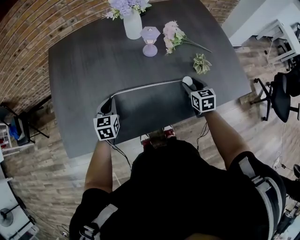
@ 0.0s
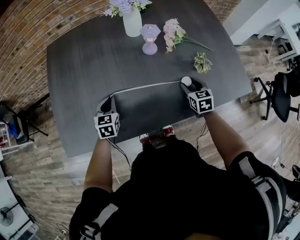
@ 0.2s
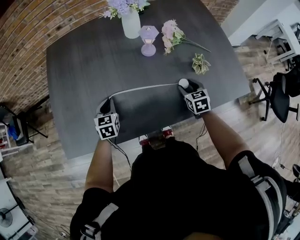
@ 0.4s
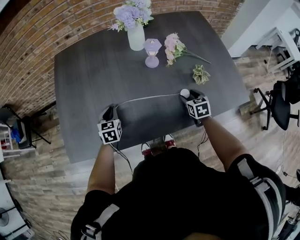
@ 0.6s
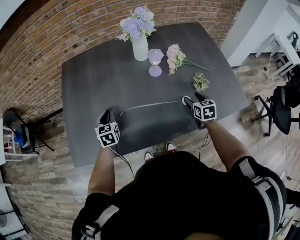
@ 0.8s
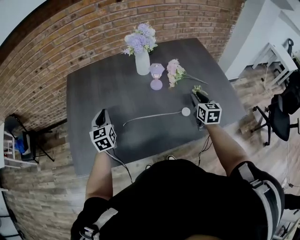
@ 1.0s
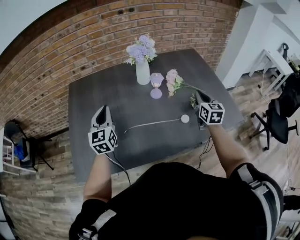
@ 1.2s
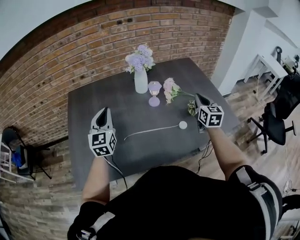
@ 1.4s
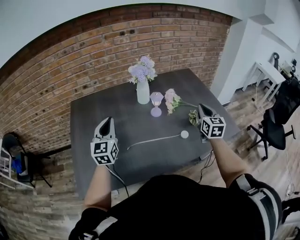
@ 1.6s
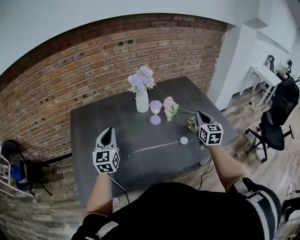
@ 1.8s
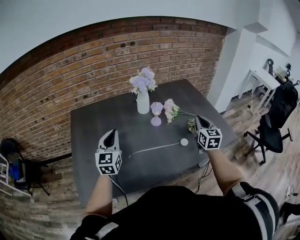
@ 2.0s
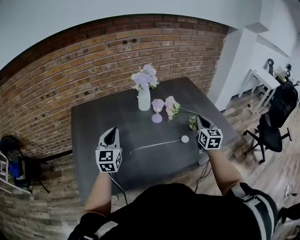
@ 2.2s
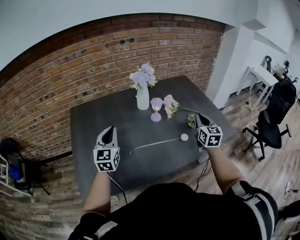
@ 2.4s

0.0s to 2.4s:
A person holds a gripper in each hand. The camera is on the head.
0.0s to 1.2s: Both grippers travel together upward, some 20 cm. The right gripper swivels about 30 degrees, and closes its fingers. Meanwhile the left gripper tips its fingers upward by roughly 30 degrees.
1.2s to 2.4s: The right gripper goes approximately 5 cm backward.

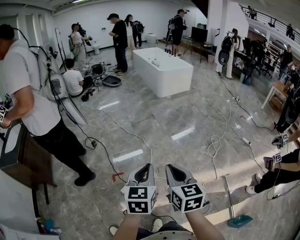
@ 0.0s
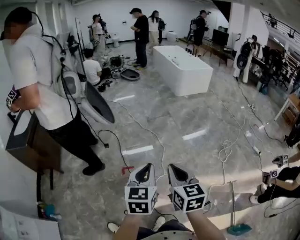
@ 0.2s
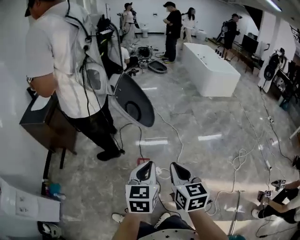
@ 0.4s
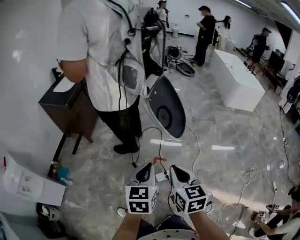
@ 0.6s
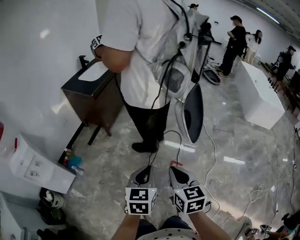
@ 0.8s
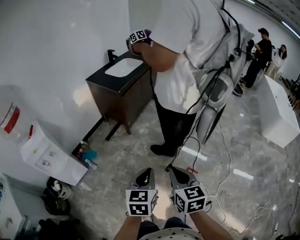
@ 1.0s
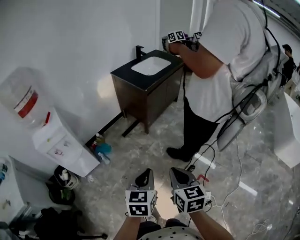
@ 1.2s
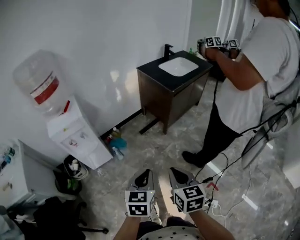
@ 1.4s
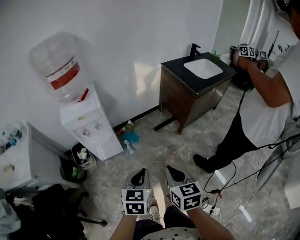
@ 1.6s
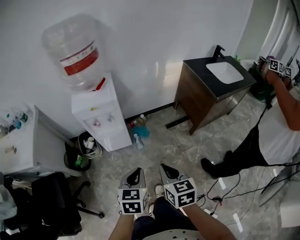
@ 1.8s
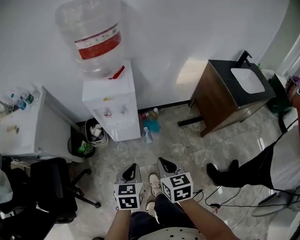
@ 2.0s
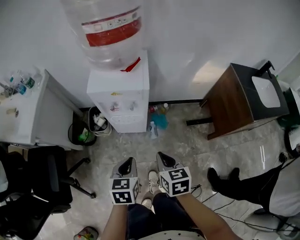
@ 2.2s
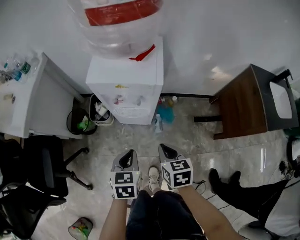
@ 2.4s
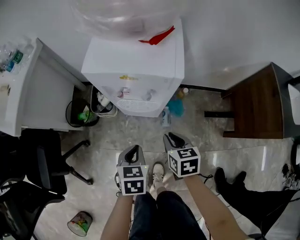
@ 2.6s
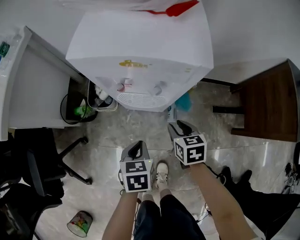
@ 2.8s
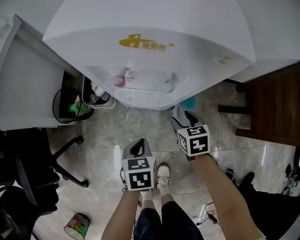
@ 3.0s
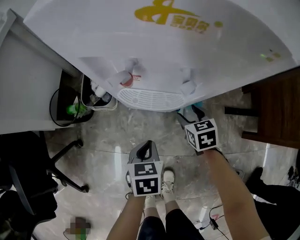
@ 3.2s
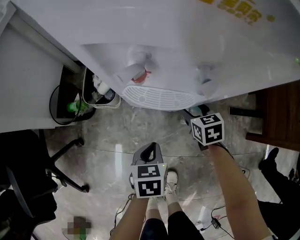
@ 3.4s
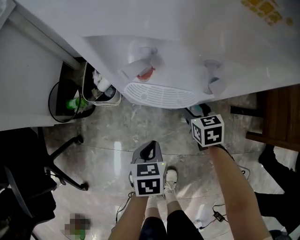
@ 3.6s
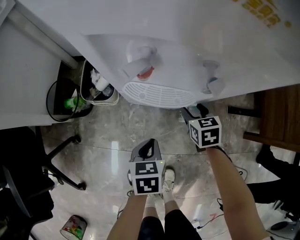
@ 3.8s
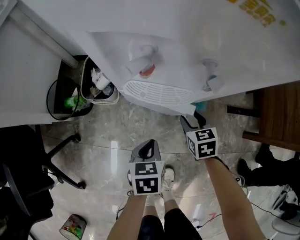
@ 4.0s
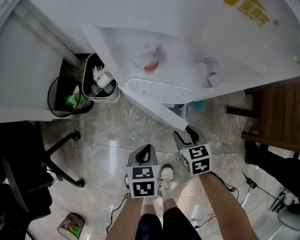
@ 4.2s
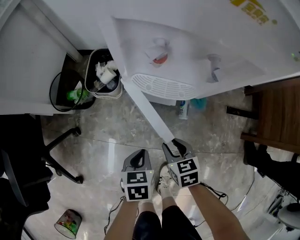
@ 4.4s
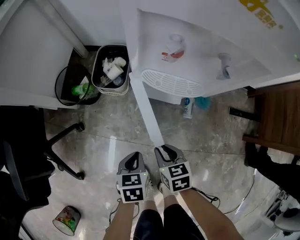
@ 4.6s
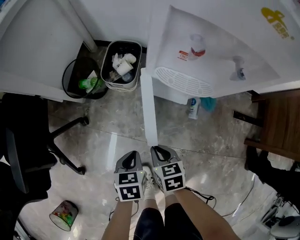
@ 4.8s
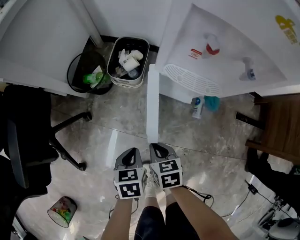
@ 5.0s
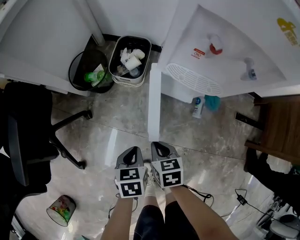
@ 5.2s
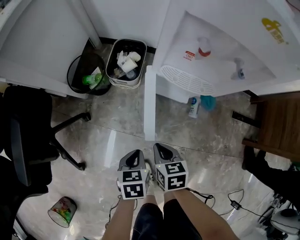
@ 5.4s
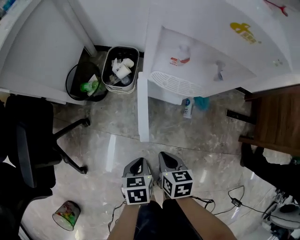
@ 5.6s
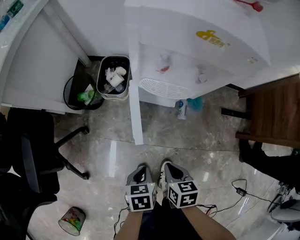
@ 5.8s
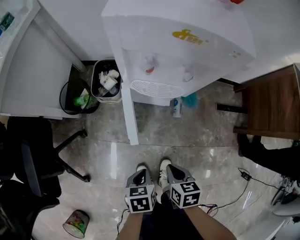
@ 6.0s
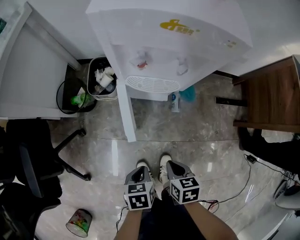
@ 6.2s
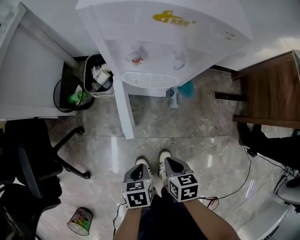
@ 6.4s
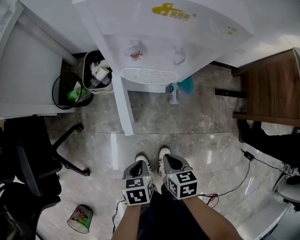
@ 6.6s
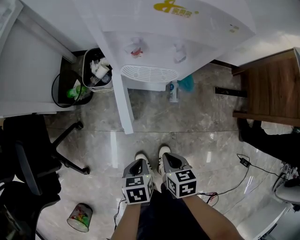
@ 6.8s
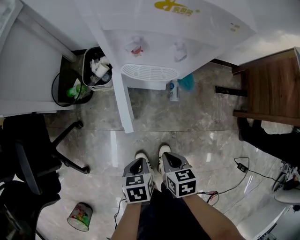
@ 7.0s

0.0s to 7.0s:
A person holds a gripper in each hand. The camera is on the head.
0.0s to 1.4s: The pair of grippers is taken roughly 80 cm. The left gripper rotates roughly 70 degrees; the right gripper turns by about 70 degrees.
1.4s to 2.8s: The two grippers travel together, approximately 50 cm. The right gripper rotates about 50 degrees, and opens its fingers, while the left gripper swivels about 60 degrees.
2.8s to 4.2s: The two grippers go roughly 15 cm downward. The right gripper opens and closes again.
4.2s to 5.6s: The right gripper moves to the left, backward and upward, roughly 20 cm, and closes up; the left gripper travels backward and to the left by roughly 15 cm.
5.6s to 7.0s: The right gripper moves to the right and backward, roughly 10 cm. The left gripper shifts by some 5 cm.

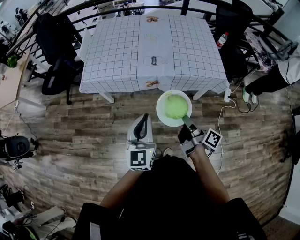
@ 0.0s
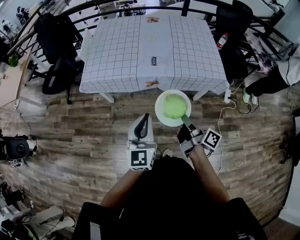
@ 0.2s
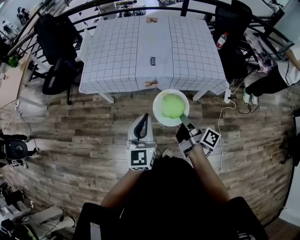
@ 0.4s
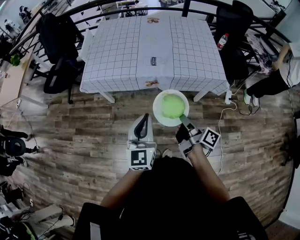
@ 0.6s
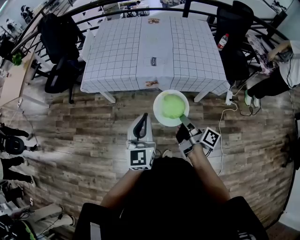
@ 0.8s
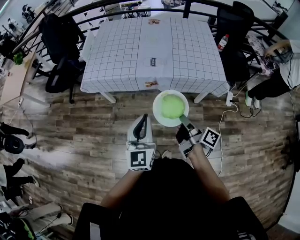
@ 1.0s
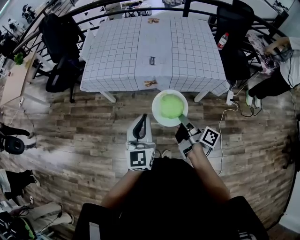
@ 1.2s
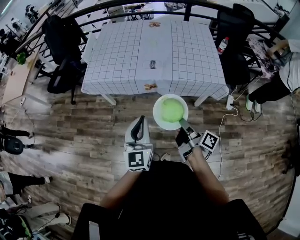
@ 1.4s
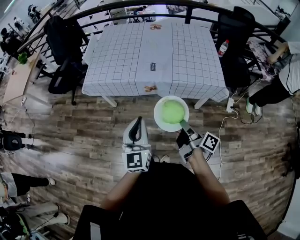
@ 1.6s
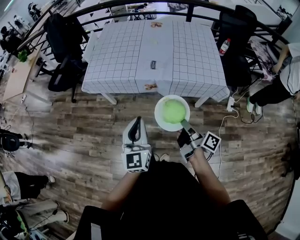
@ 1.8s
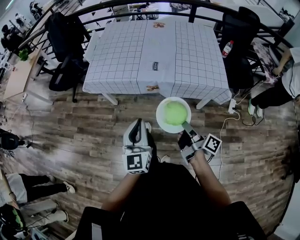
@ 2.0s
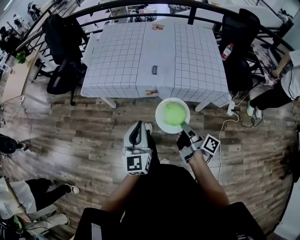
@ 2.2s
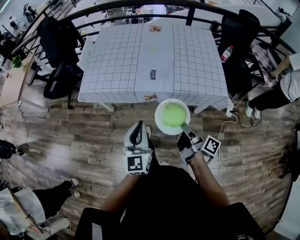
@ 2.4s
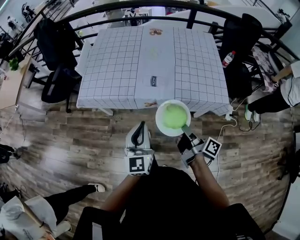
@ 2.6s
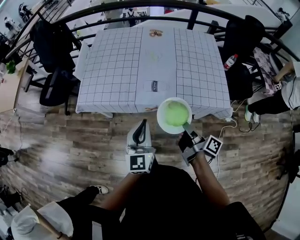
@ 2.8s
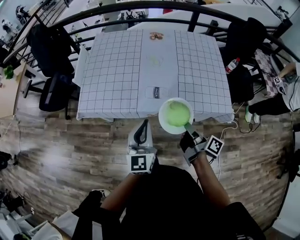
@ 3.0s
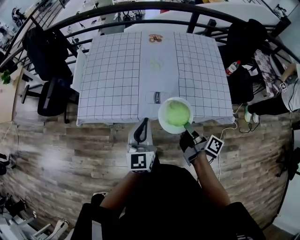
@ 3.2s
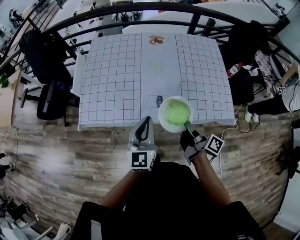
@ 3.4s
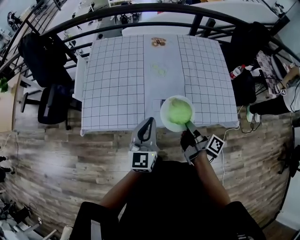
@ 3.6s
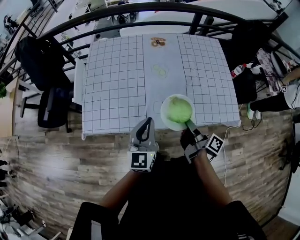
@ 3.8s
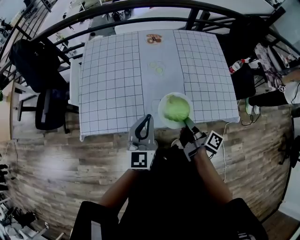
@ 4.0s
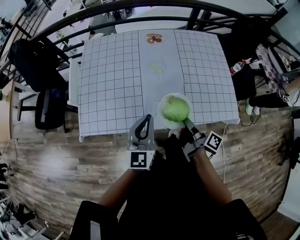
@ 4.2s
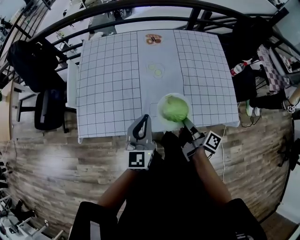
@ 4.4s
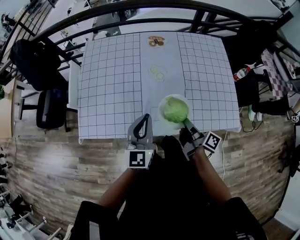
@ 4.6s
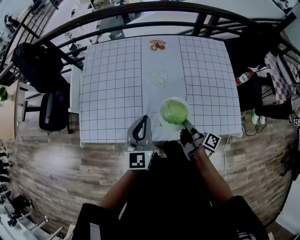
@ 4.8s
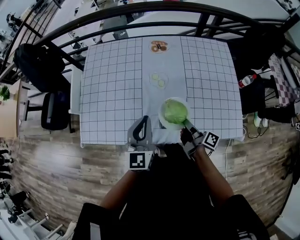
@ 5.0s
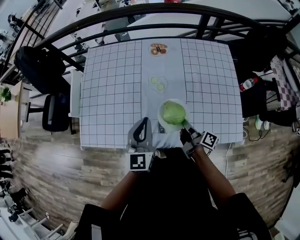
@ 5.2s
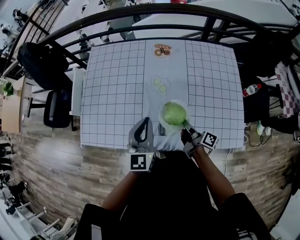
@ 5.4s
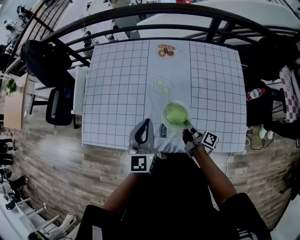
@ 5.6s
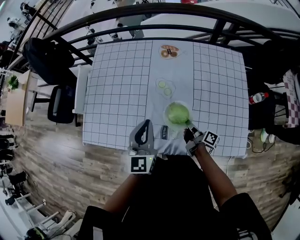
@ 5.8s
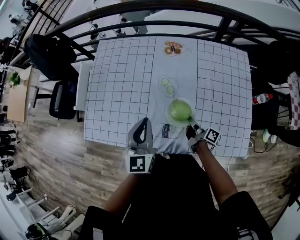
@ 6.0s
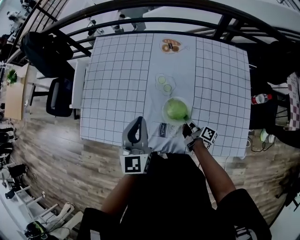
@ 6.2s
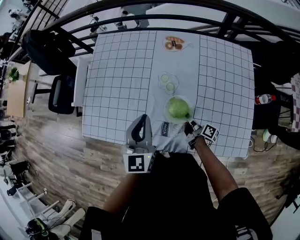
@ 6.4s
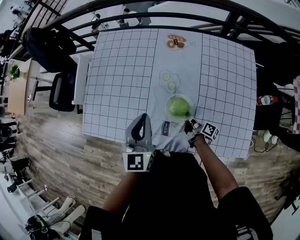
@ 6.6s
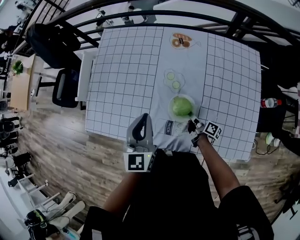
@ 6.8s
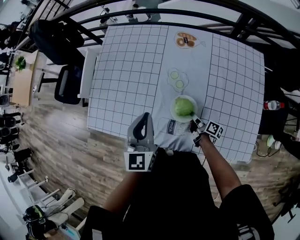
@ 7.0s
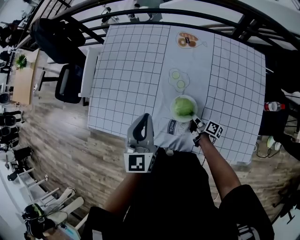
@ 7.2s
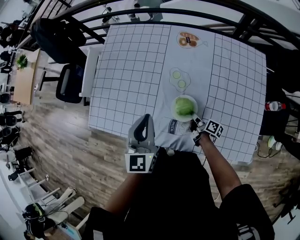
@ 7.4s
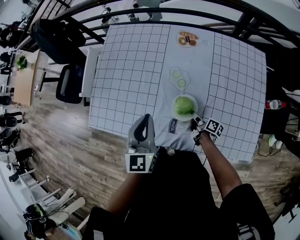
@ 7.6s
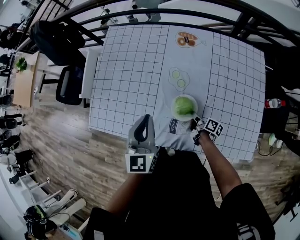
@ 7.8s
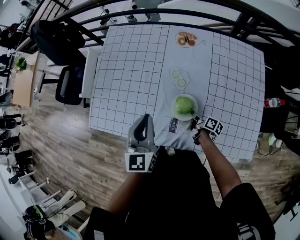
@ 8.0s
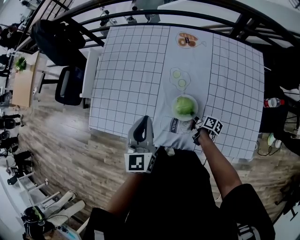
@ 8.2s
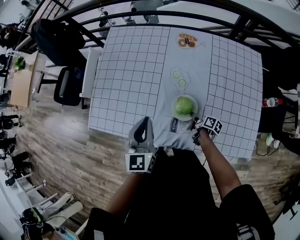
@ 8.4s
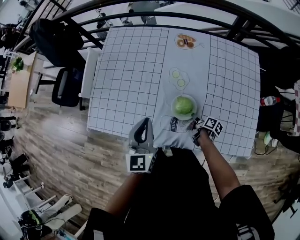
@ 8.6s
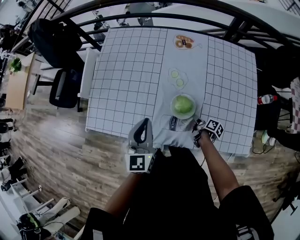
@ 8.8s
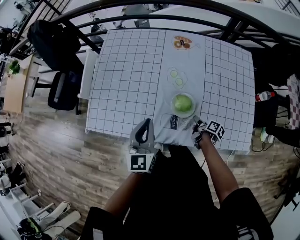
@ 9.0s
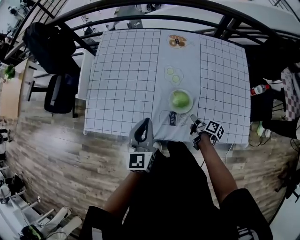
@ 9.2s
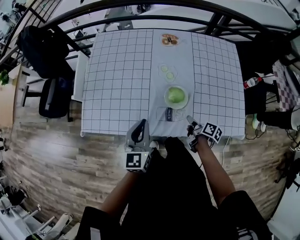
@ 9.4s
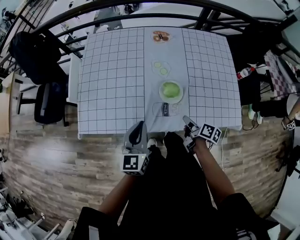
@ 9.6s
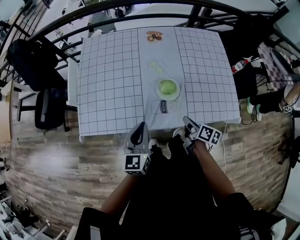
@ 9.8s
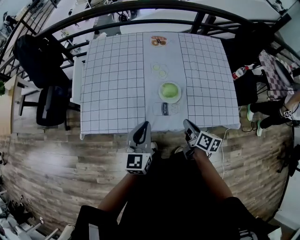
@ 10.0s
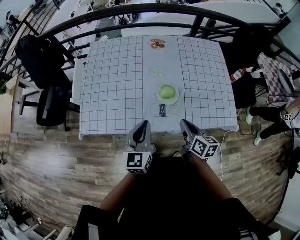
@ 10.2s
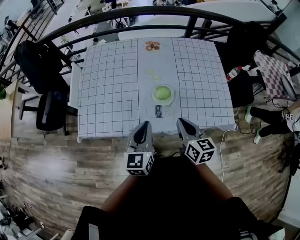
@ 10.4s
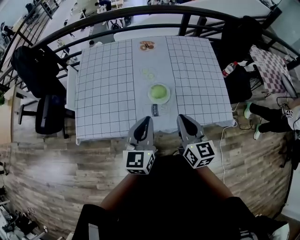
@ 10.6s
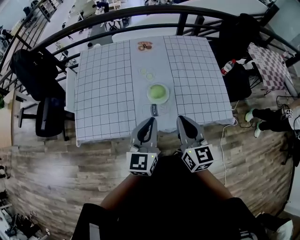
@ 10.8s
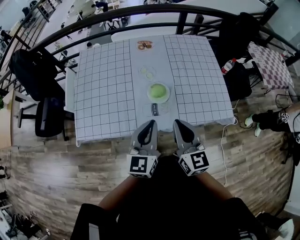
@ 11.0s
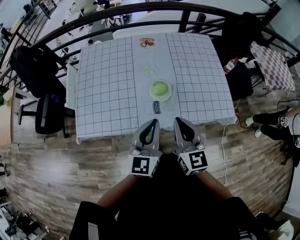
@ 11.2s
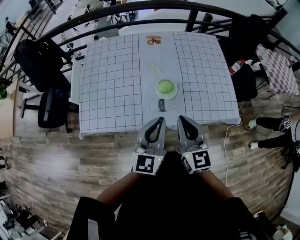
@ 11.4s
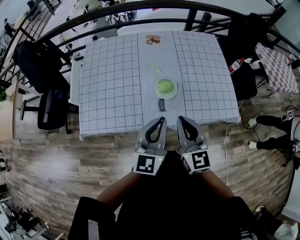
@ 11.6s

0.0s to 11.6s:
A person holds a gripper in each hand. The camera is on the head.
1.4s to 2.8s: The left gripper shifts by some 20 cm.
2.8s to 4.4s: The left gripper changes place by approximately 25 cm.
4.4s to 5.8s: The left gripper shifts by about 15 cm.
7.2s to 8.8s: The left gripper shifts by some 5 cm.
8.8s to 10.2s: The left gripper shifts by about 10 cm.
10.2s to 11.6s: The left gripper shifts by some 10 cm.

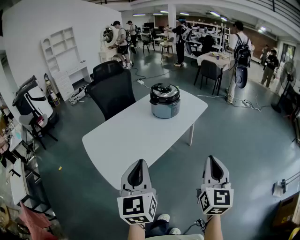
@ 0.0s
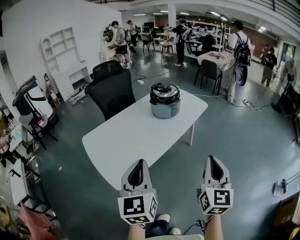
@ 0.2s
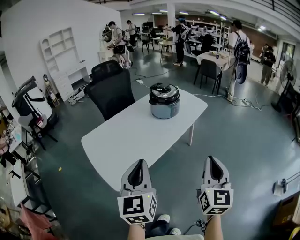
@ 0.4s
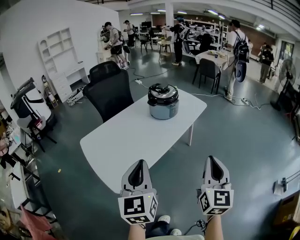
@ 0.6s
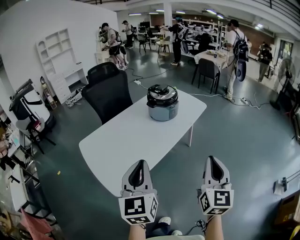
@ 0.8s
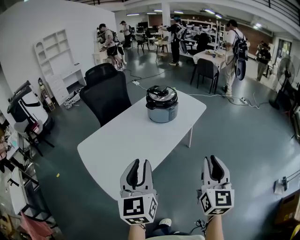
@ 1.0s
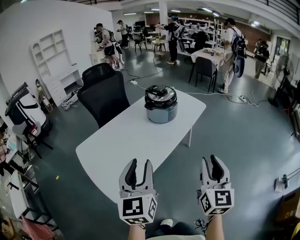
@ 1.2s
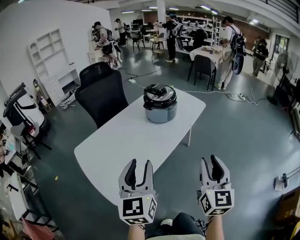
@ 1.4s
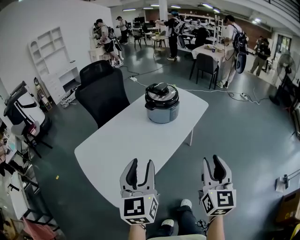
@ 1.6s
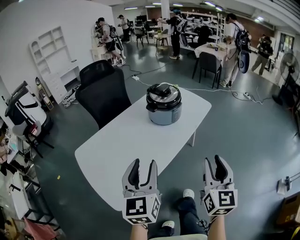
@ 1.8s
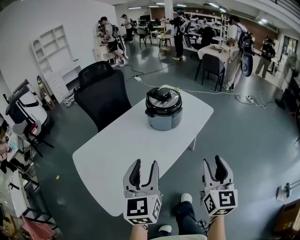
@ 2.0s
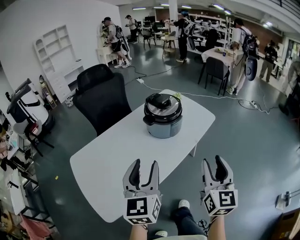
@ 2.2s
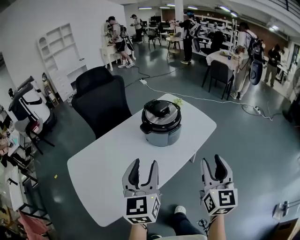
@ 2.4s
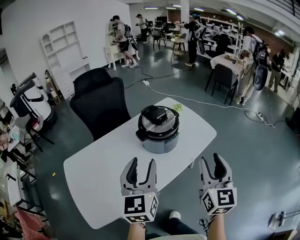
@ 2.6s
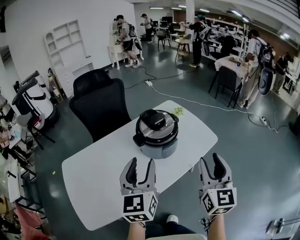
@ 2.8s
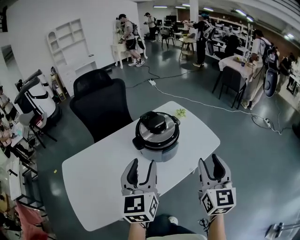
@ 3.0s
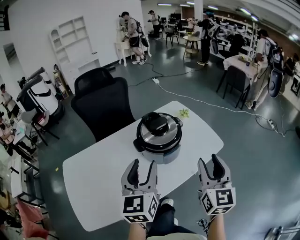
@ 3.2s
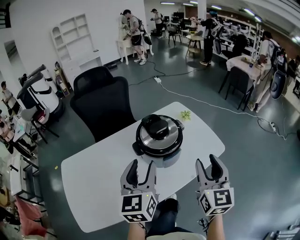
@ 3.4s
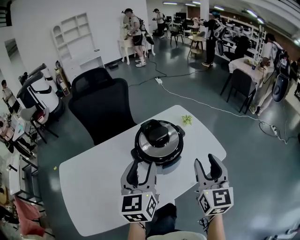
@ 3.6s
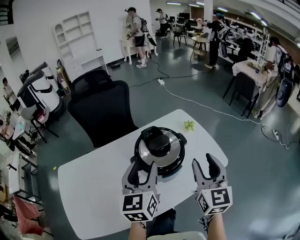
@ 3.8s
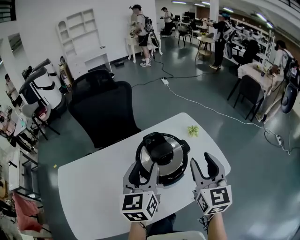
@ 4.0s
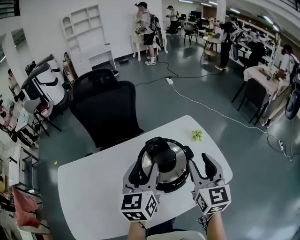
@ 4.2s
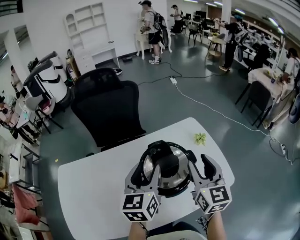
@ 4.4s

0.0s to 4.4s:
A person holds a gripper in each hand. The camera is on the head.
0.0s to 1.4s: The two grippers go about 15 cm forward. The left gripper opens up. The right gripper opens its fingers.
1.4s to 3.0s: The two grippers travel together, forward, roughly 50 cm.
3.0s to 4.4s: Both grippers move forward, approximately 35 cm. The right gripper rotates some 20 degrees.
